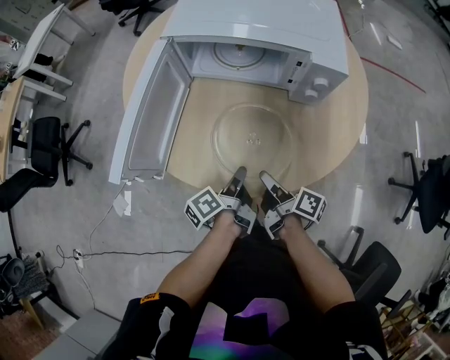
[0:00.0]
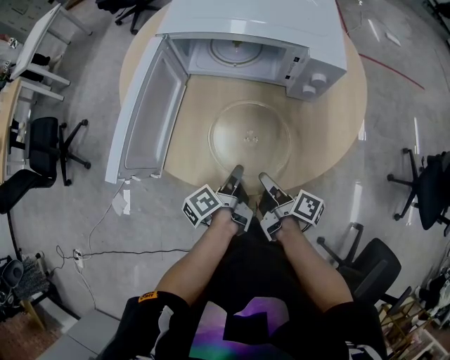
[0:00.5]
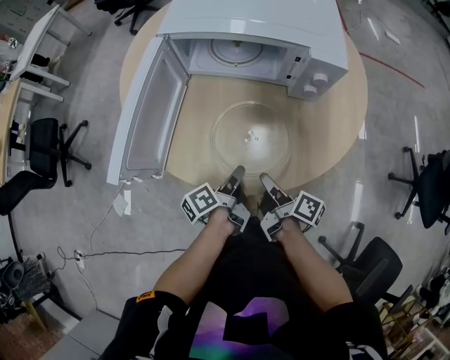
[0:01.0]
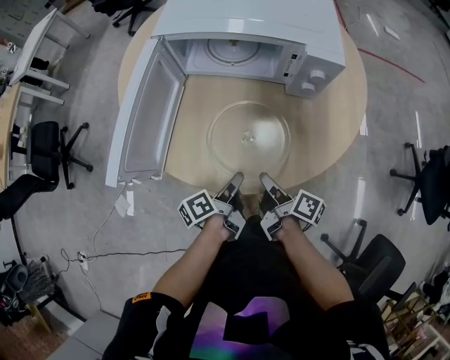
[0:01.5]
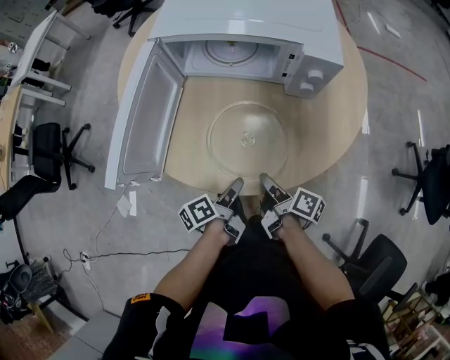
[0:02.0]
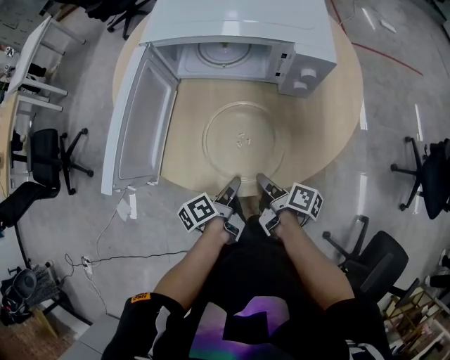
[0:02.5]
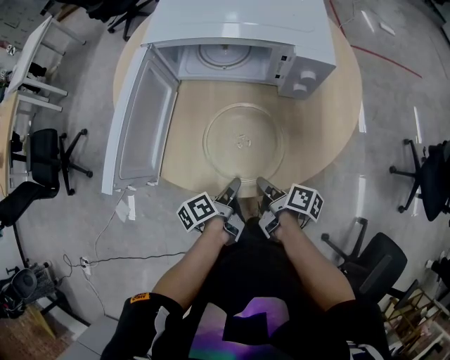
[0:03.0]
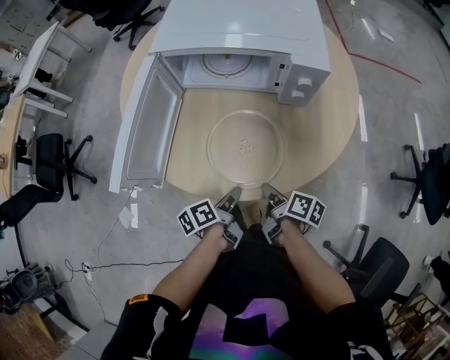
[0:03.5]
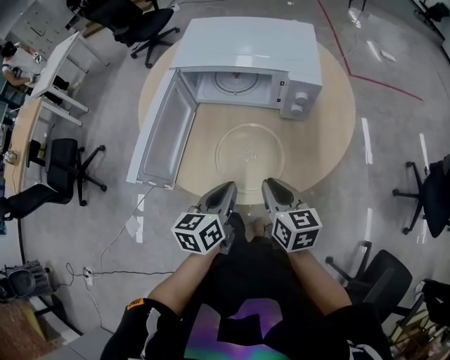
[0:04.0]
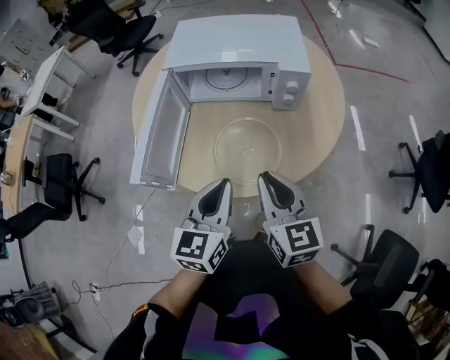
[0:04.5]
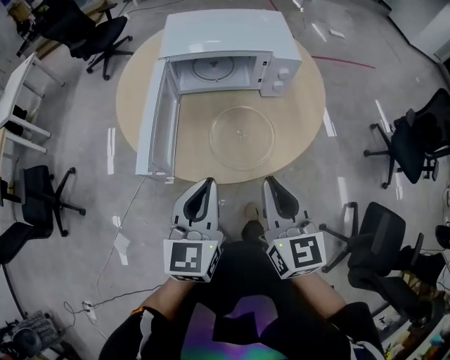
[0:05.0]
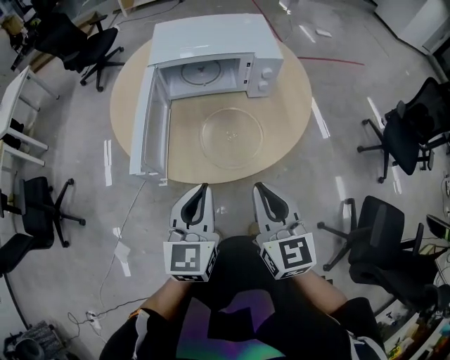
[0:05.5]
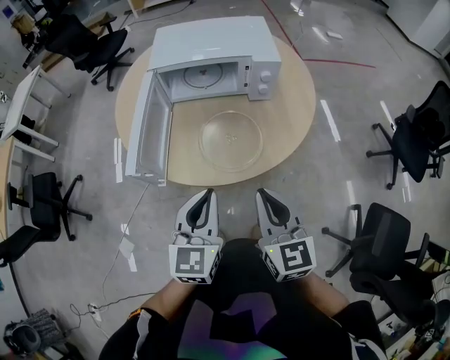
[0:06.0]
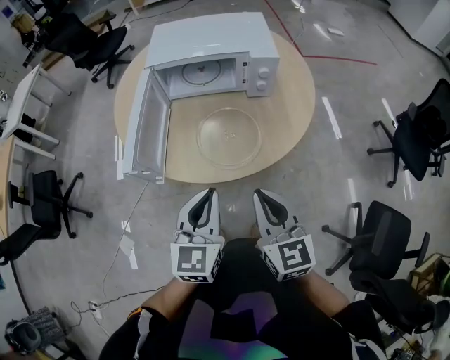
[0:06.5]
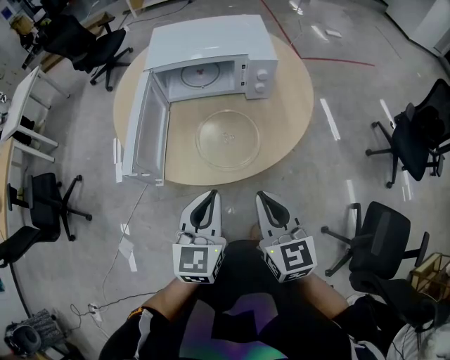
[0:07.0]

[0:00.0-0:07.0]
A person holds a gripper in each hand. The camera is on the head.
0:00.0 to 0:02.0: The left gripper shifts by about 5 cm.
0:02.0 to 0:03.5: The grippers move only a little.
0:03.5 to 0:05.0: Both grippers travel together upward, about 30 cm. The right gripper rolls counterclockwise, seen from behind, by about 60 degrees; the left gripper rotates around the line of its fingers by about 70 degrees, clockwise from behind.
0:05.0 to 0:07.0: Both grippers move to the right, approximately 5 cm.

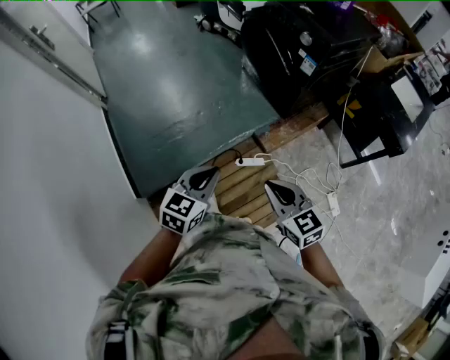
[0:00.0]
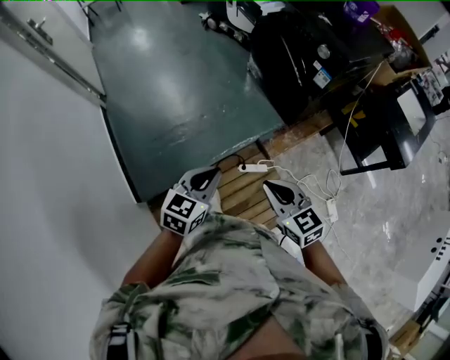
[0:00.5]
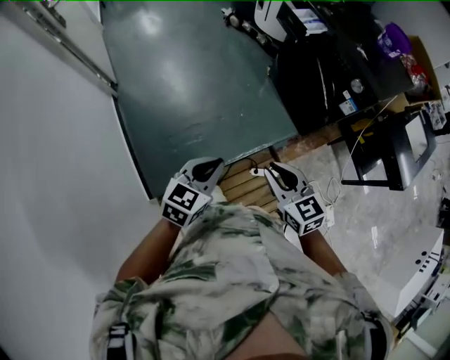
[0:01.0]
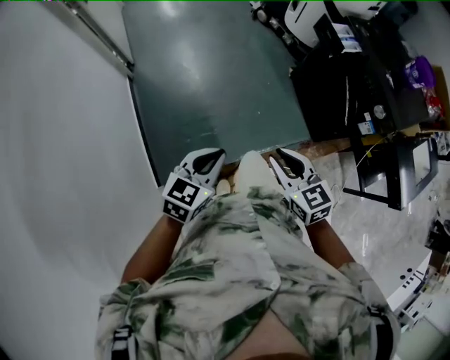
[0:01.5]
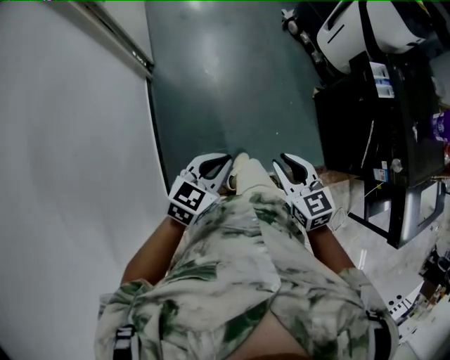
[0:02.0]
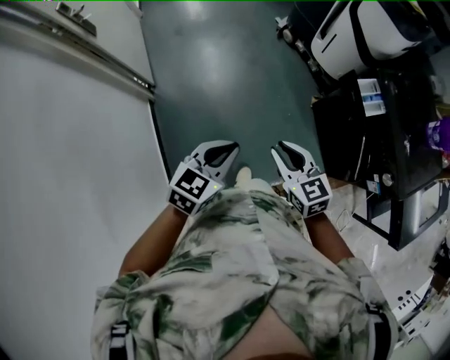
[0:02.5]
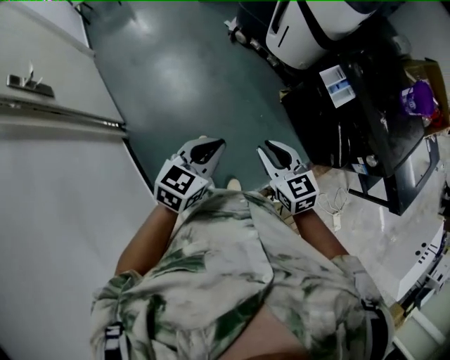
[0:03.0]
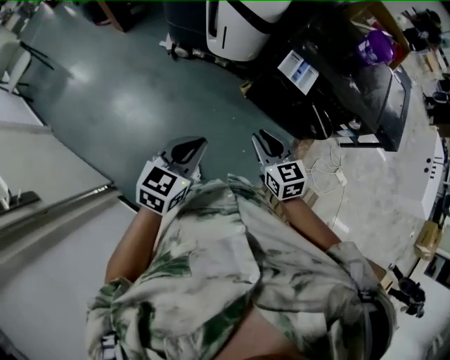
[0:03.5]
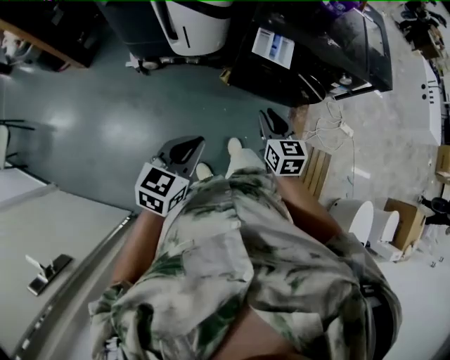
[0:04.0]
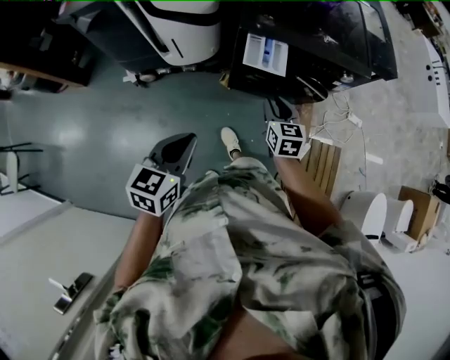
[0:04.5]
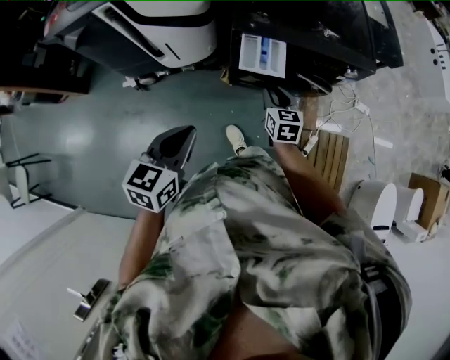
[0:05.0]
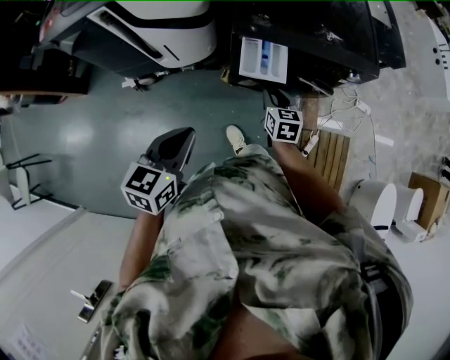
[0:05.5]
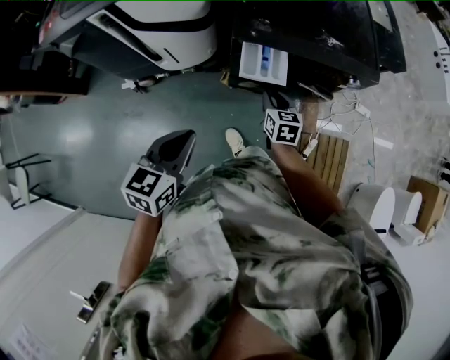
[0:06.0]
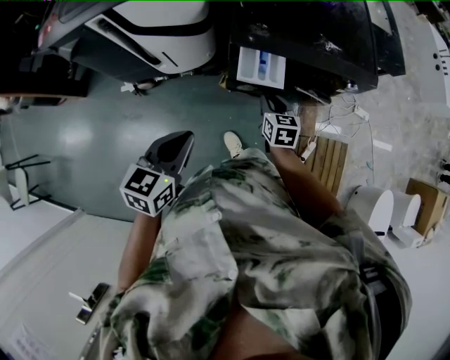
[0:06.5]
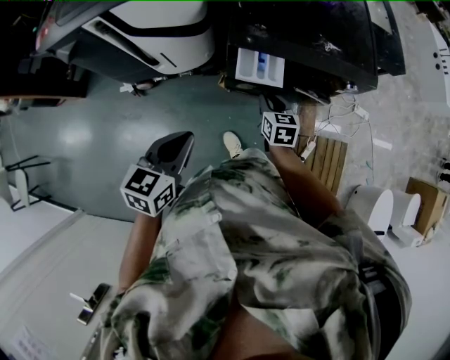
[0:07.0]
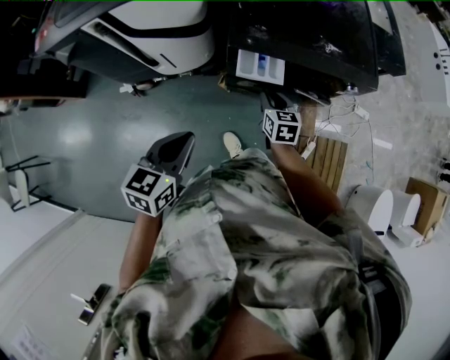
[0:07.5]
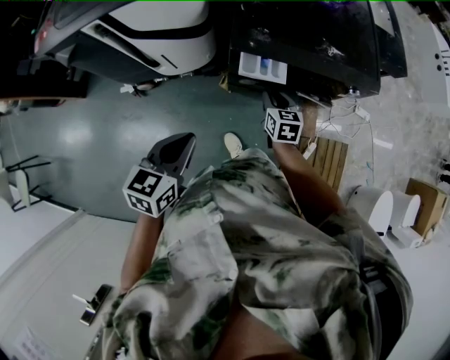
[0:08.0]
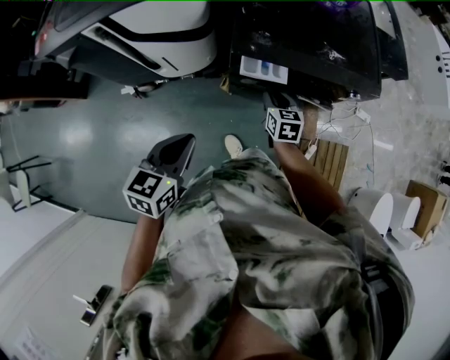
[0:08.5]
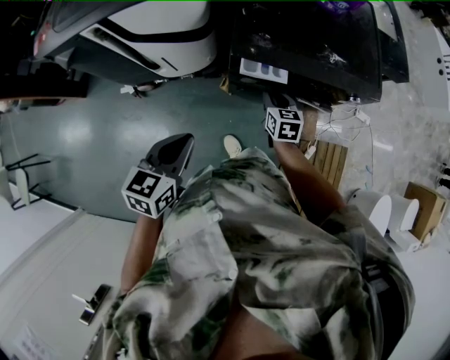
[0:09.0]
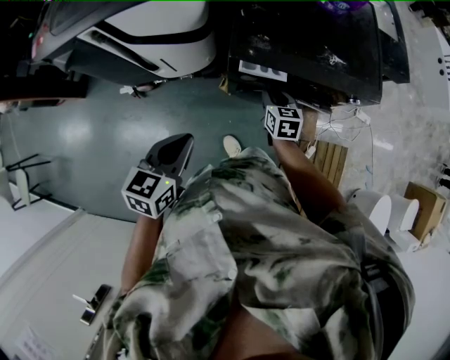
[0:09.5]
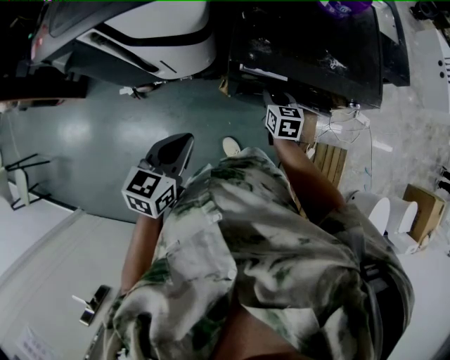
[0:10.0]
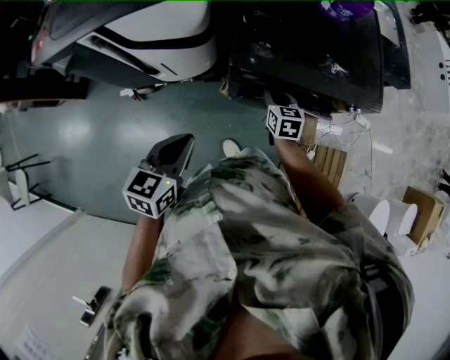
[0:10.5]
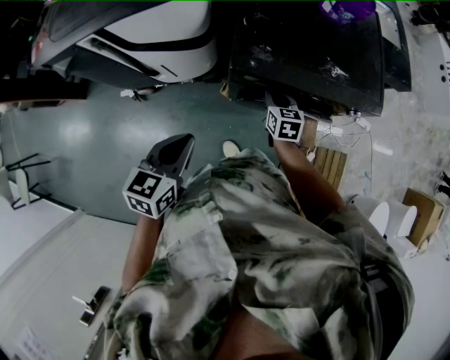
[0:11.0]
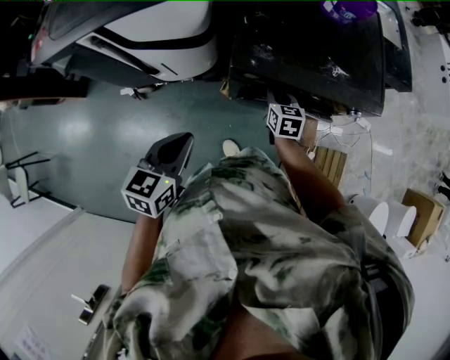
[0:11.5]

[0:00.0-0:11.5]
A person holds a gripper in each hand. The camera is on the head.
0:00.0 to 0:02.0: The pair of grippers is taken forward and to the left, some 60 cm. The right gripper opens up.
0:02.0 to 0:04.0: Both grippers are carried roughly 50 cm. The left gripper swivels about 60 degrees. The right gripper turns by roughly 80 degrees.
0:04.0 to 0:06.0: The right gripper moves forward and downward, approximately 25 cm. The left gripper heads forward, covering roughly 20 cm.
0:06.0 to 0:07.5: The grippers move only a little.
0:07.5 to 0:09.5: The left gripper shifts by about 5 cm, while the right gripper shifts roughly 5 cm forward.
0:09.5 to 0:11.5: The right gripper ends up approximately 5 cm from where it was.

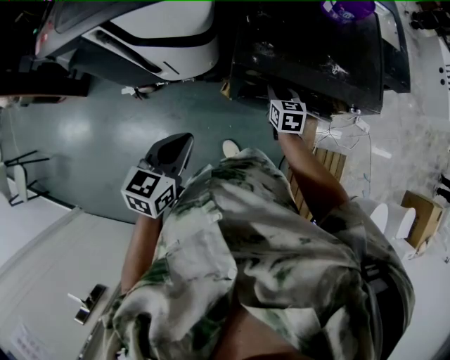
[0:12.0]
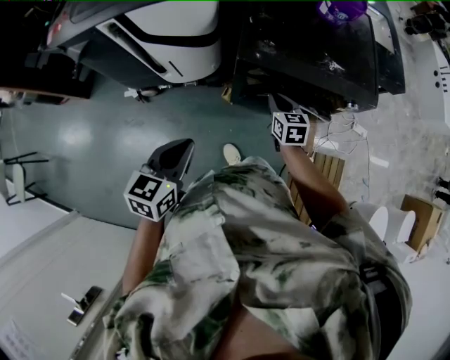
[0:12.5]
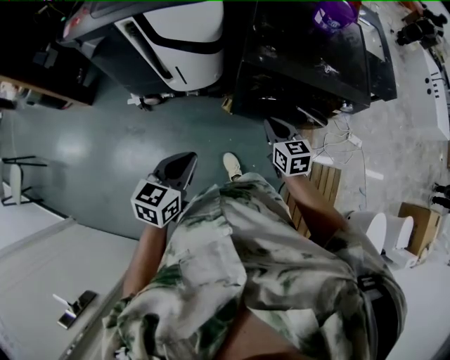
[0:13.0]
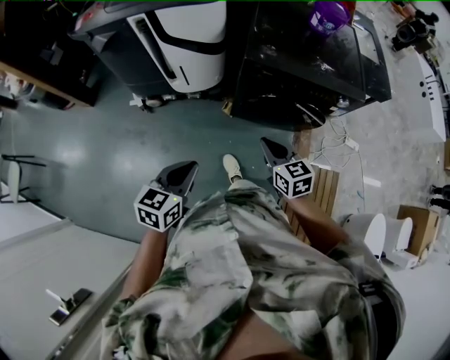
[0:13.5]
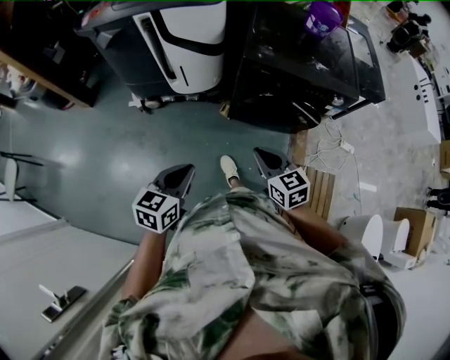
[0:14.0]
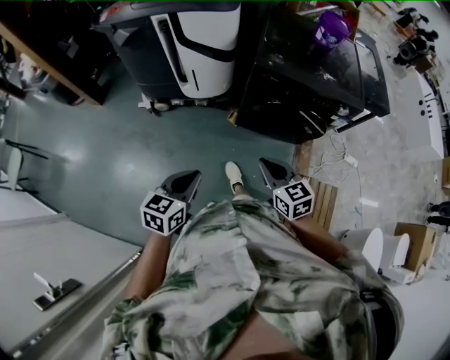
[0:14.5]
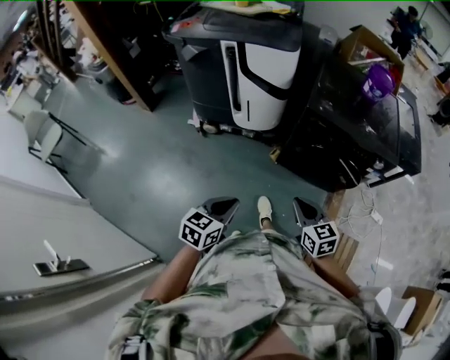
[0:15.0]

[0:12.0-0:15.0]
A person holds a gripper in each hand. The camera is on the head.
0:12.0 to 0:13.5: The left gripper moves backward, some 25 cm. Meanwhile the right gripper shifts approximately 35 cm backward and upward.
0:13.5 to 0:15.0: Both grippers travel together backward, some 15 cm.

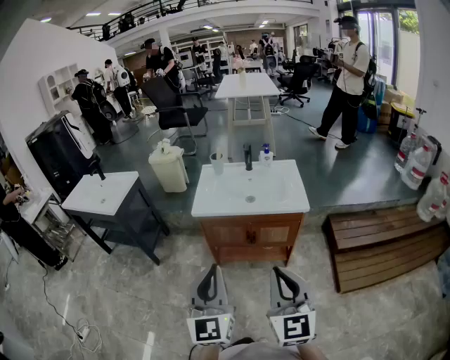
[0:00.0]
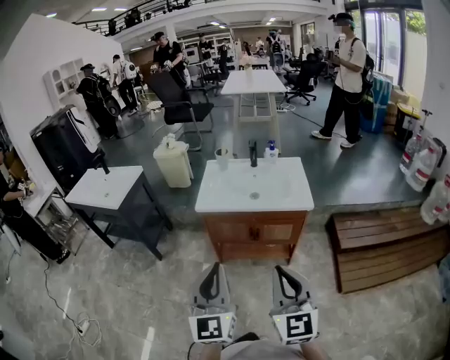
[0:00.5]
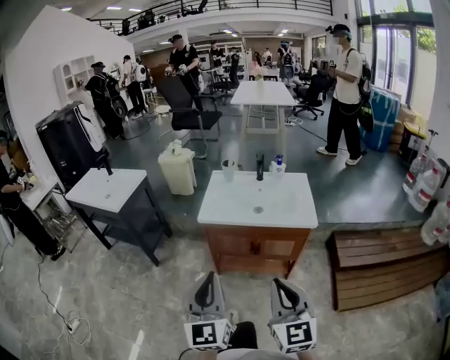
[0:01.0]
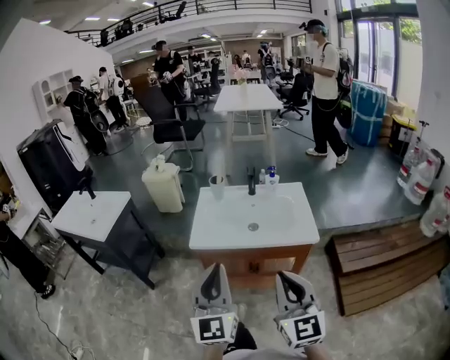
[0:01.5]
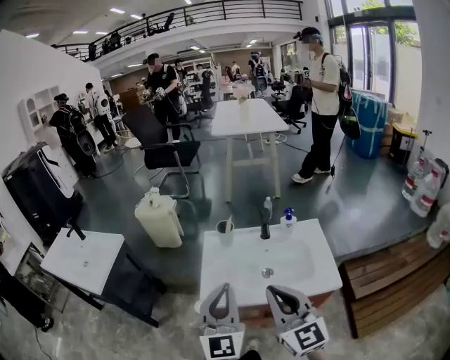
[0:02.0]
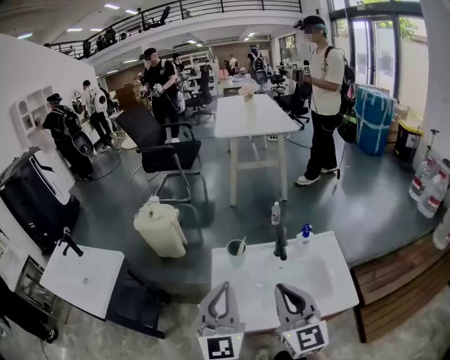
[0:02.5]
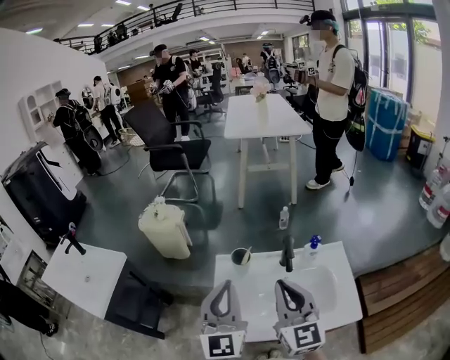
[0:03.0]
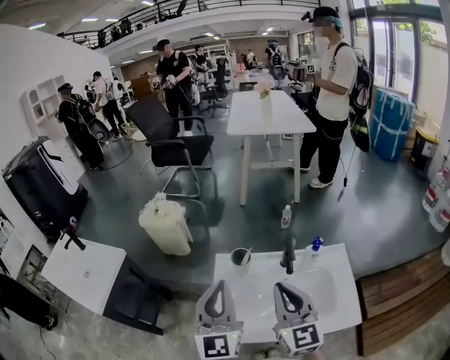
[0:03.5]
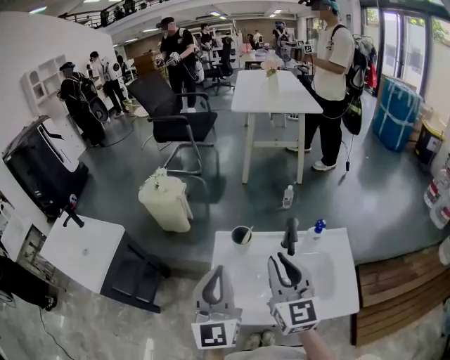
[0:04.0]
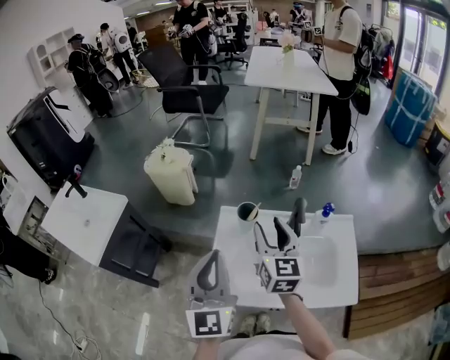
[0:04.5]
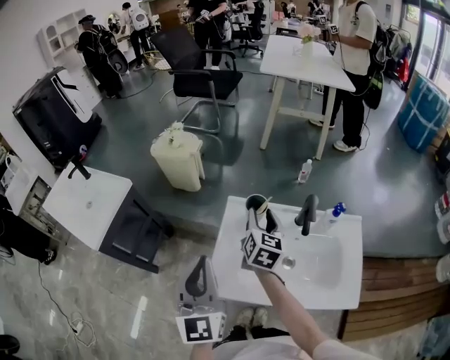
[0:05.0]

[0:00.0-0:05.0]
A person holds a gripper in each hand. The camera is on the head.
0:00.0 to 0:02.5: The pair of grippers is taken forward, roughly 50 cm.
0:02.5 to 0:05.0: The right gripper heads forward and downward, covering some 25 cm, rotates approximately 30 degrees, and opens. Meanwhile the left gripper goes roughly 10 cm to the left and downward, and swivels about 30 degrees.
